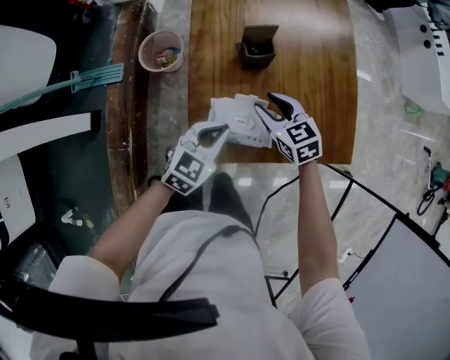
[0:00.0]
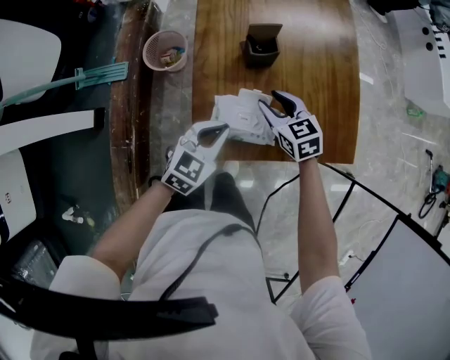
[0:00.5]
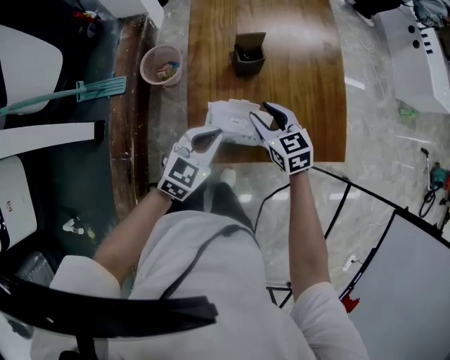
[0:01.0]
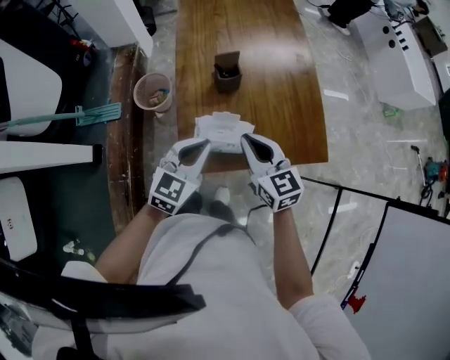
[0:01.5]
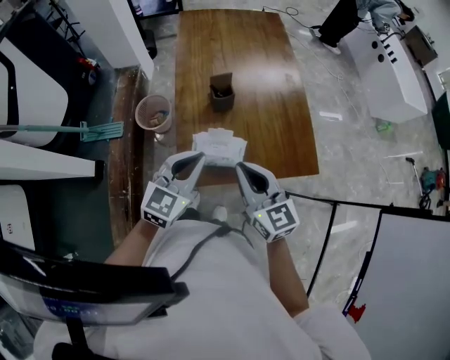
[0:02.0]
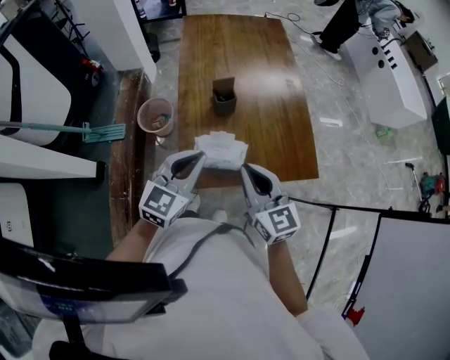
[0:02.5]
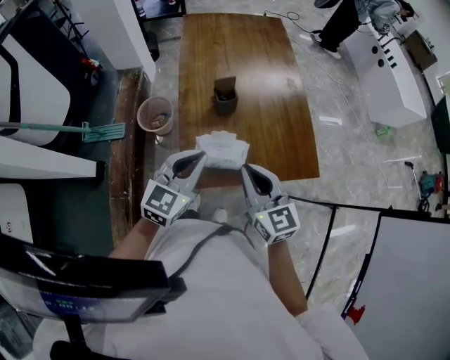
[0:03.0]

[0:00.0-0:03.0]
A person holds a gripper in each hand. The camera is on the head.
0.0 to 1.5 s: The left gripper moves upward, roughly 10 cm; the right gripper moves upward and backward, approximately 15 cm, changes its angle by about 20 degrees, and closes.
1.5 to 3.0 s: The left gripper heads upward, covering some 5 cm. The right gripper is displaced upward and backward by roughly 10 cm.

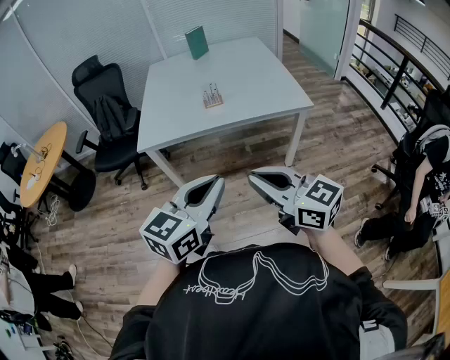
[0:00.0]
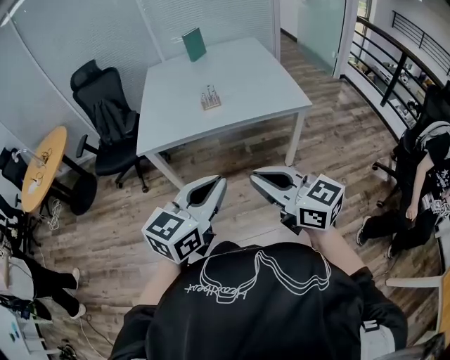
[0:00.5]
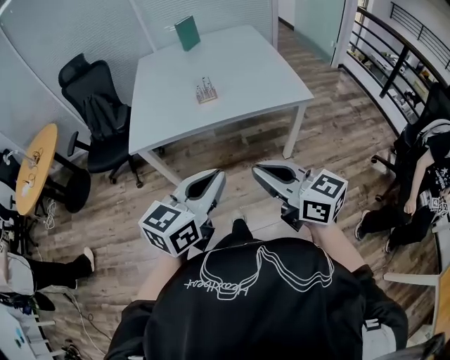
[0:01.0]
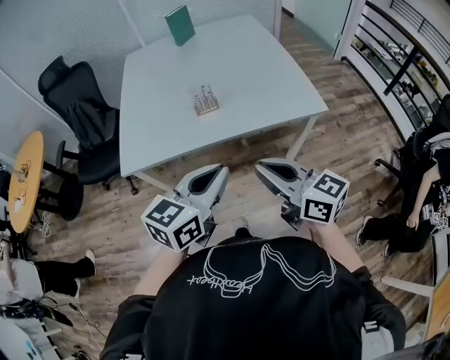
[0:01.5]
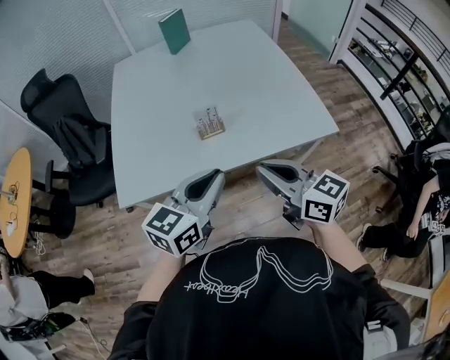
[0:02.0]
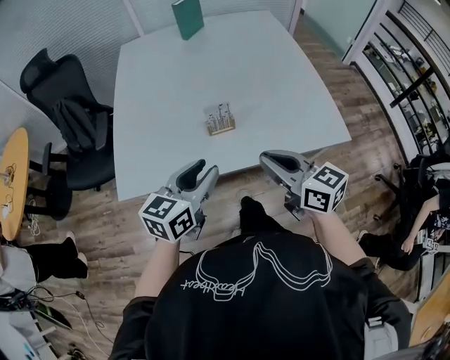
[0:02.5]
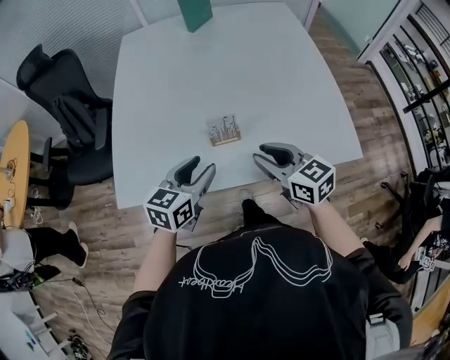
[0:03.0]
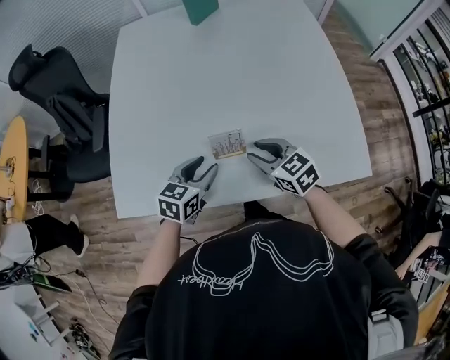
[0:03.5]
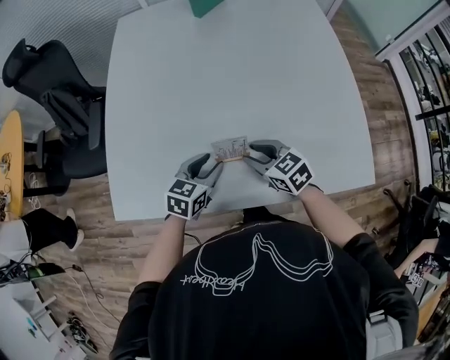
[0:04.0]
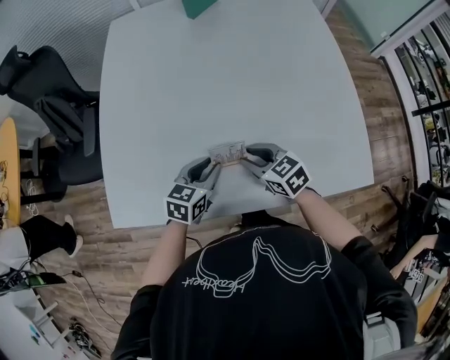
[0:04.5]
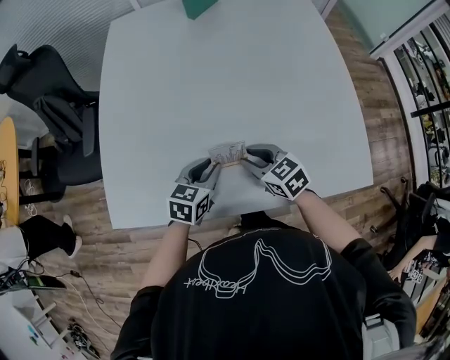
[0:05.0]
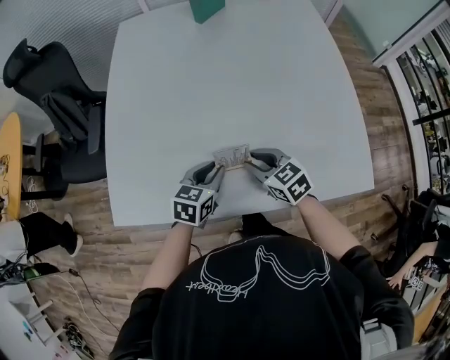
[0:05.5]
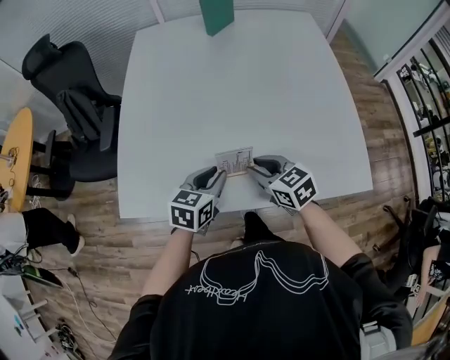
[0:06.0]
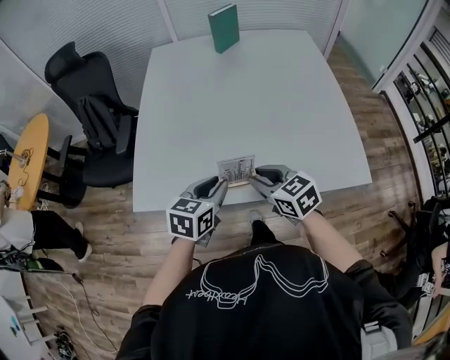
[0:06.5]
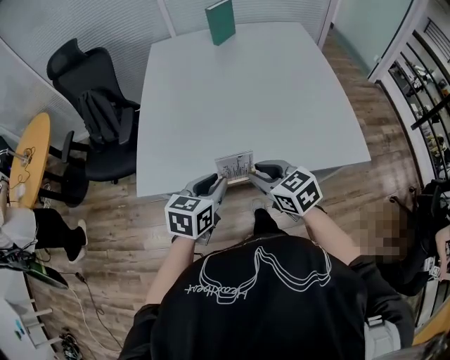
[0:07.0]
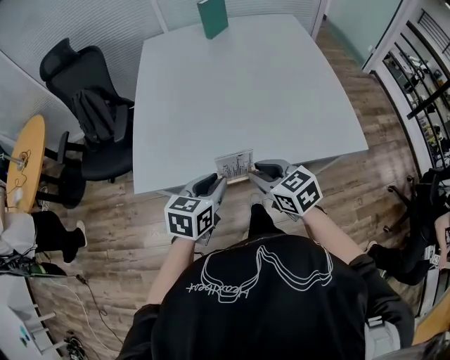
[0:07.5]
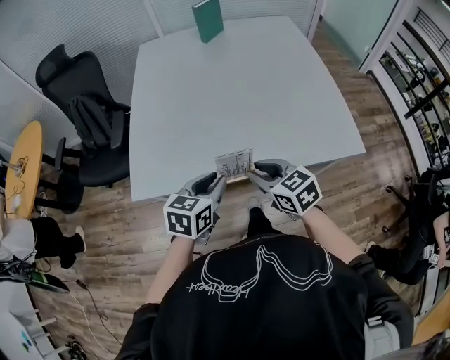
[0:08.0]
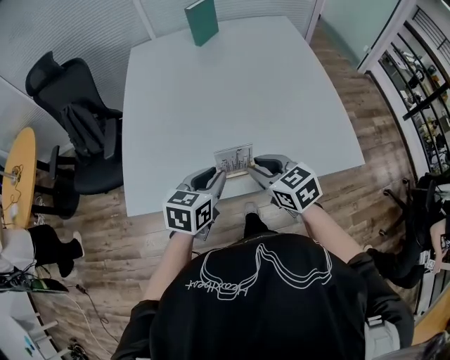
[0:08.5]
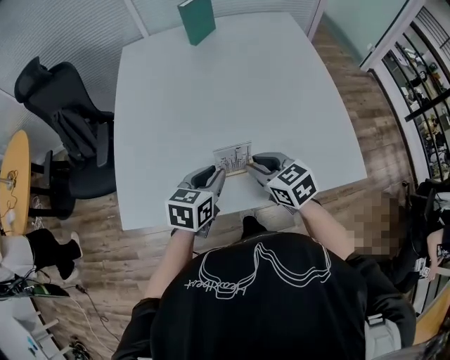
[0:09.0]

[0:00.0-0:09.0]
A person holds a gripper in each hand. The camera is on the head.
0.0 to 2.0 s: Both grippers move forward, about 40 cm.
2.0 to 4.5 s: Both grippers move forward and downward, approximately 35 cm. The right gripper points its fingers about 30 degrees further downward, and opens; the left gripper swivels about 30 degrees, and opens.
4.5 to 7.0 s: The grippers both shift backward and upward by approximately 25 cm.
7.0 to 9.0 s: Both grippers move forward and to the right, about 15 cm.

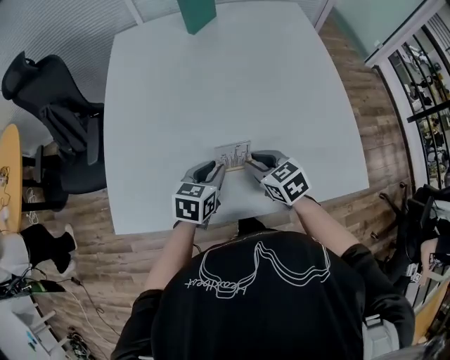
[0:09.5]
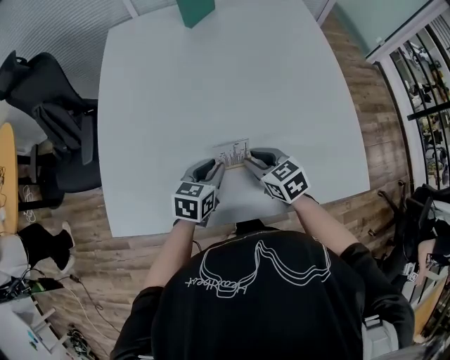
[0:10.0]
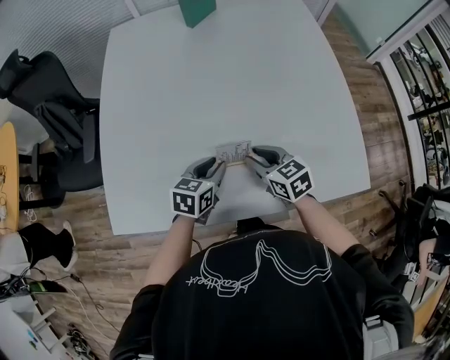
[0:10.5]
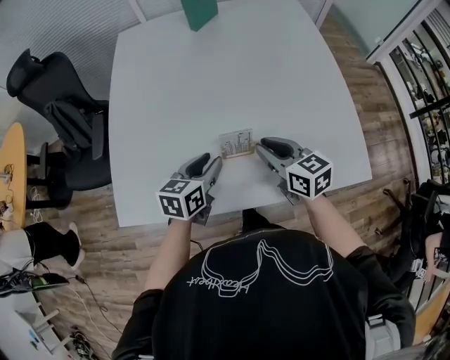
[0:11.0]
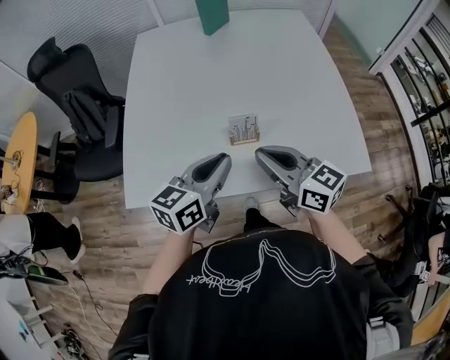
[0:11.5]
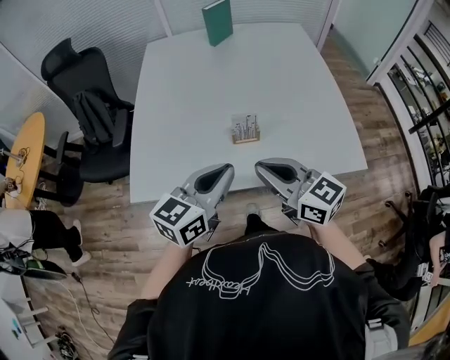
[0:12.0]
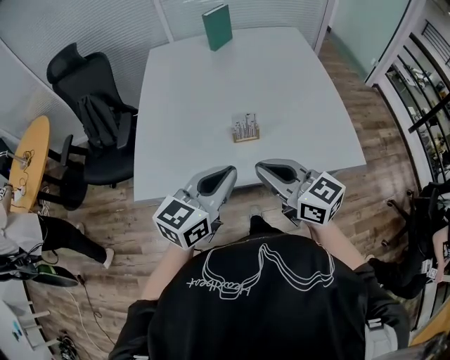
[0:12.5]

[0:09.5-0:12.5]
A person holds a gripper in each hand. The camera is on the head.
9.5 to 11.0 s: The right gripper goes about 5 cm upward, and changes its angle by about 20 degrees.
11.0 to 12.5 s: Both grippers move backward and upward, some 25 cm. The left gripper rotates approximately 30 degrees, and closes its fingers. The right gripper rotates roughly 20 degrees.

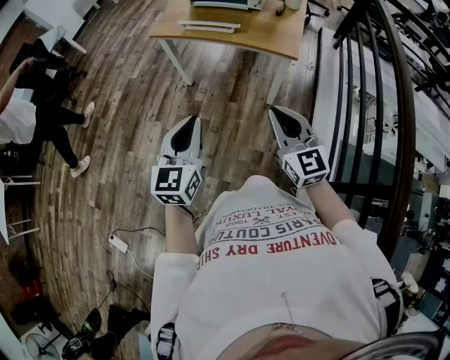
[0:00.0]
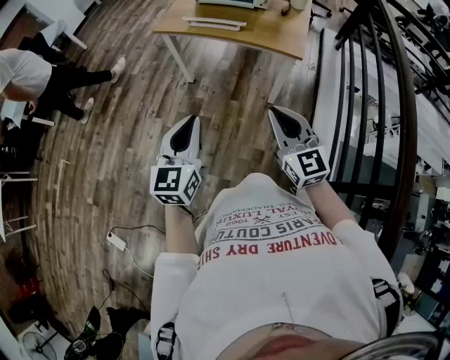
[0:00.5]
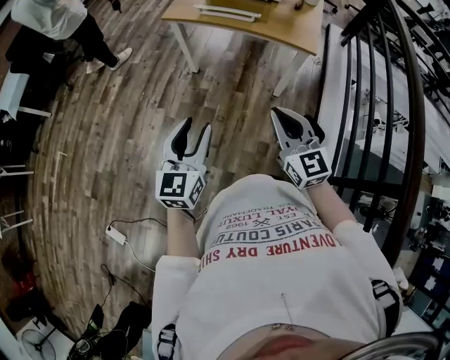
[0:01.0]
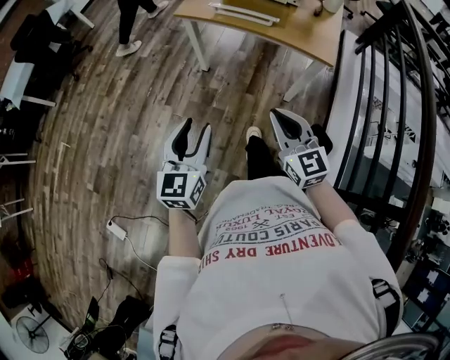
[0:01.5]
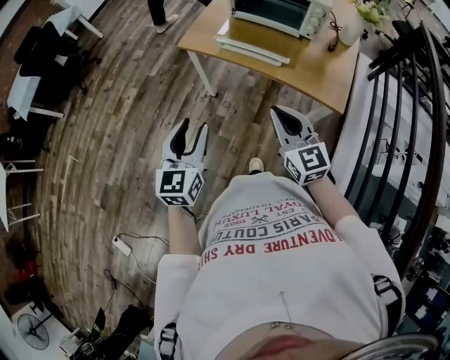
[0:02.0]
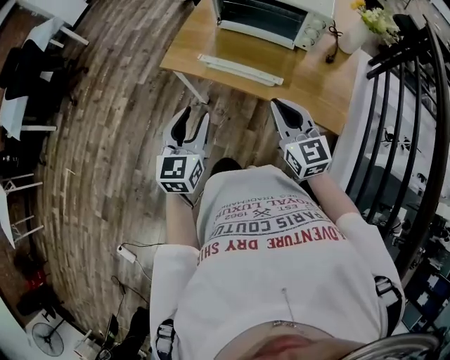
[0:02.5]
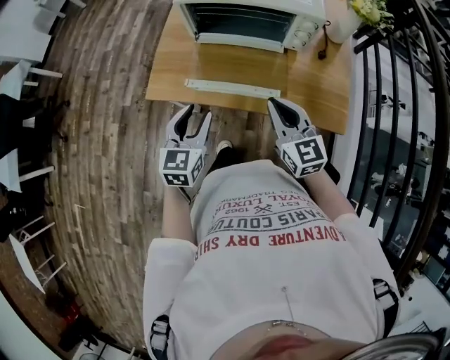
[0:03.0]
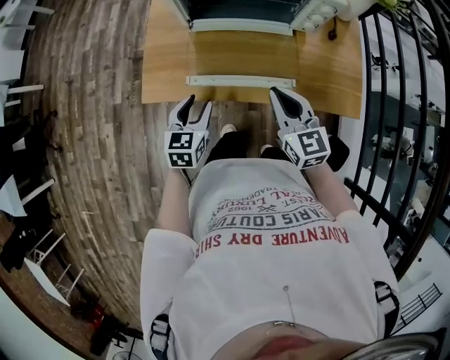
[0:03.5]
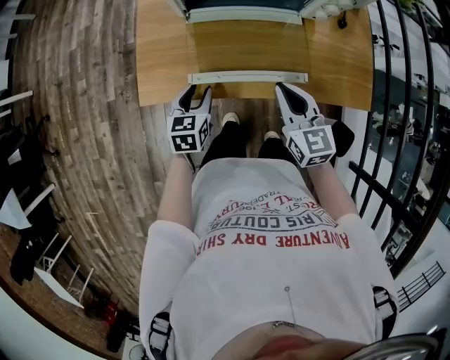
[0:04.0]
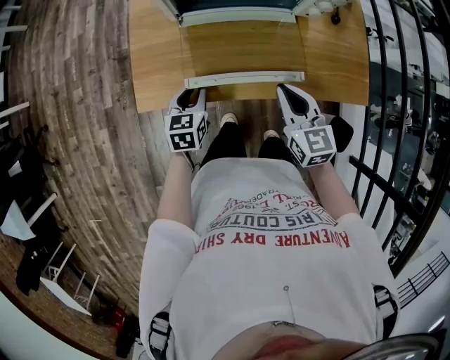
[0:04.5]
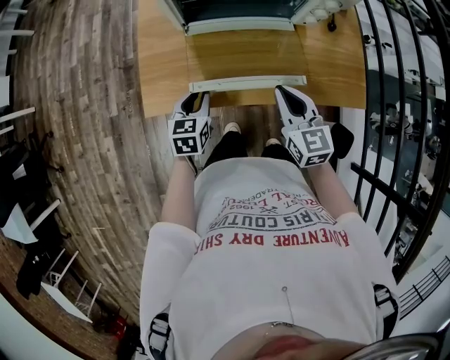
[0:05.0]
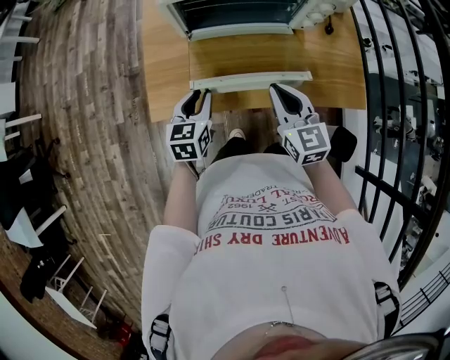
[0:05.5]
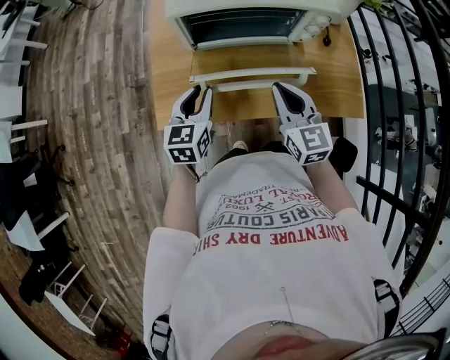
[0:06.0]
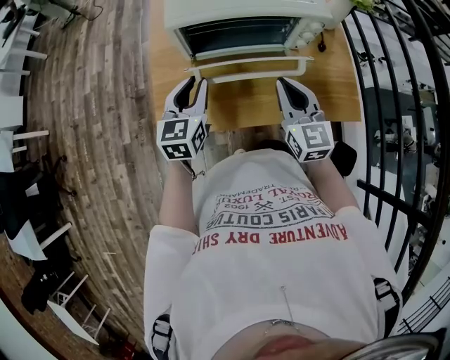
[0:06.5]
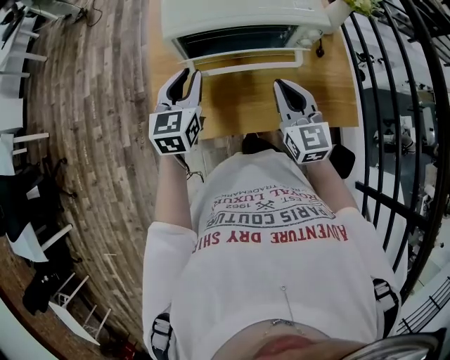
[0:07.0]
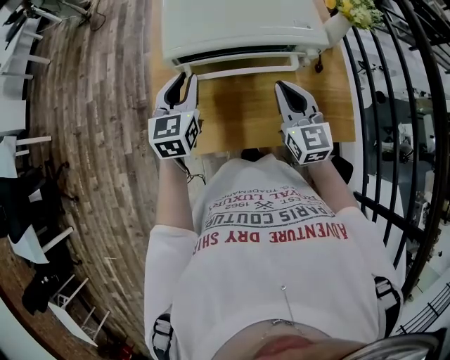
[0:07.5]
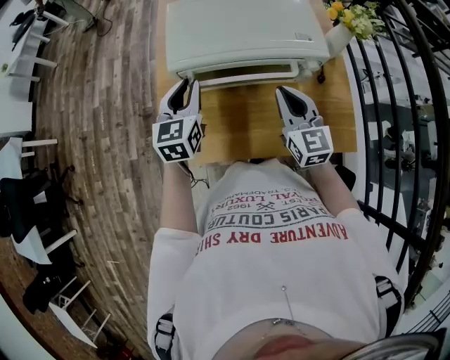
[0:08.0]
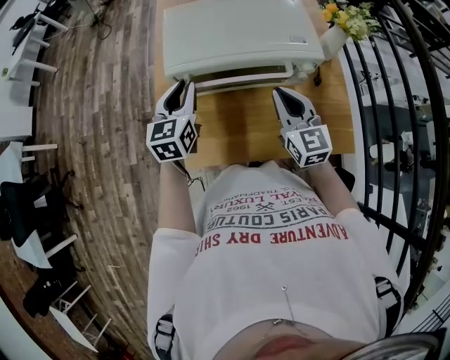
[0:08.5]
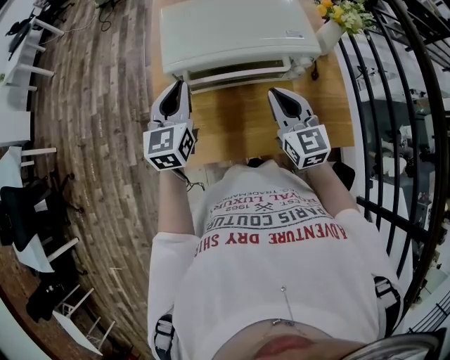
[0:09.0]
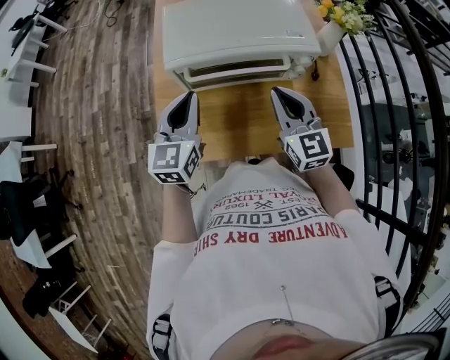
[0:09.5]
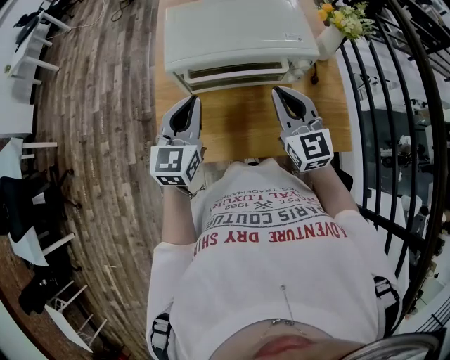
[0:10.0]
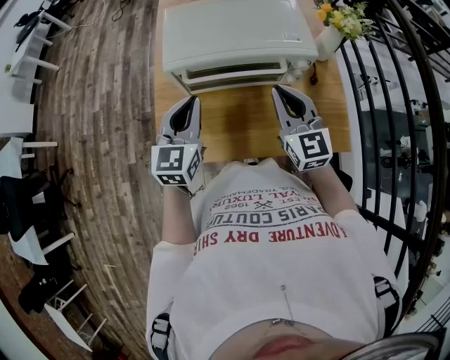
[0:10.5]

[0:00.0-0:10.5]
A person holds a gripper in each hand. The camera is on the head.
0.0 to 2.0 s: The right gripper travels forward by some 30 cm, while the left gripper goes approximately 25 cm forward and to the left, and opens its fingers.
2.0 to 4.0 s: The right gripper shifts by some 30 cm, and turns by about 30 degrees, while the left gripper ends up approximately 50 cm from where it was, and turns by some 40 degrees.
4.0 to 6.5 s: The left gripper shifts approximately 20 cm upward and forward, and rotates about 20 degrees, while the right gripper goes roughly 10 cm upward and forward.
6.5 to 8.5 s: The left gripper shifts roughly 10 cm forward and upward, while the right gripper shifts roughly 10 cm forward.
8.5 to 10.5 s: The left gripper travels backward by about 5 cm.

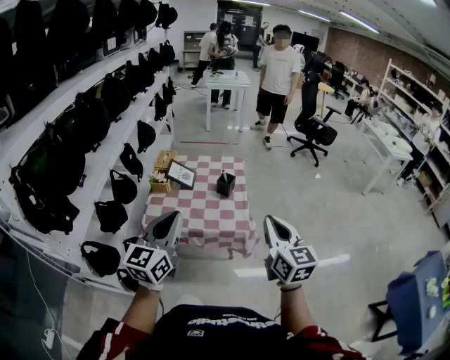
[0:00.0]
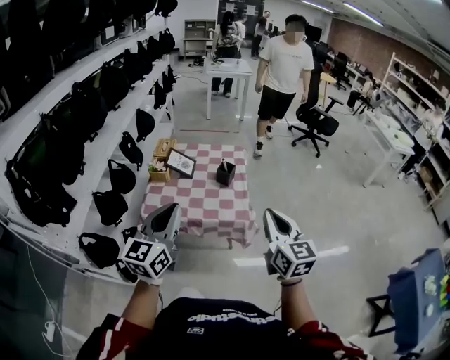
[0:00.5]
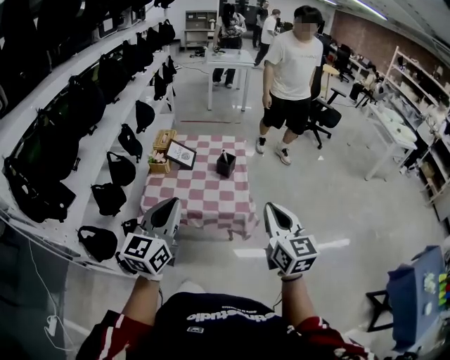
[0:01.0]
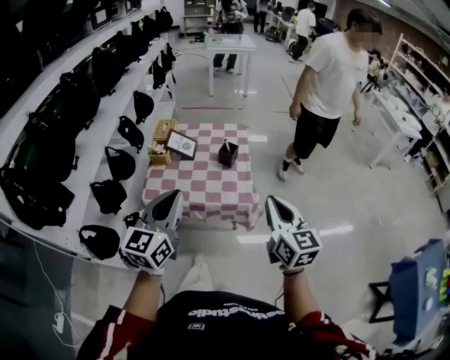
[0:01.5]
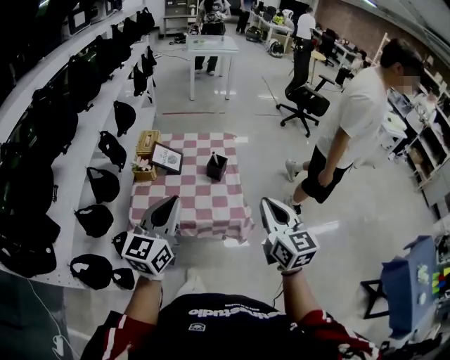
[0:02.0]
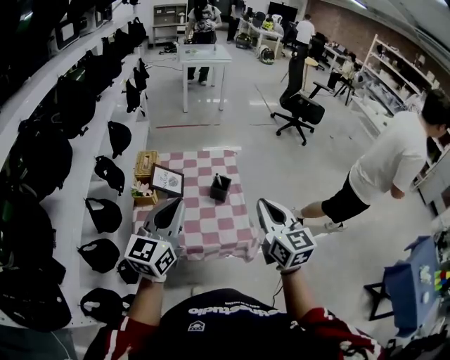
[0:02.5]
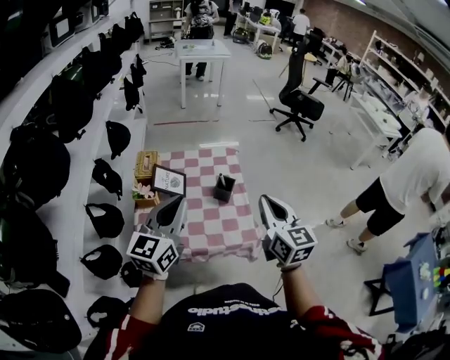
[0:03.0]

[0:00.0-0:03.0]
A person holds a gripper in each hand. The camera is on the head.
0.0 to 1.5 s: The grippers make only small movements.
1.5 to 3.0 s: The right gripper goes roughly 20 cm forward and to the left; the left gripper travels forward by some 20 cm.
